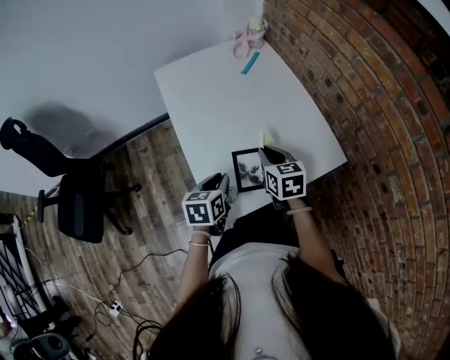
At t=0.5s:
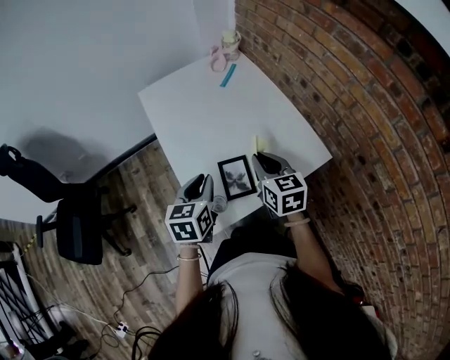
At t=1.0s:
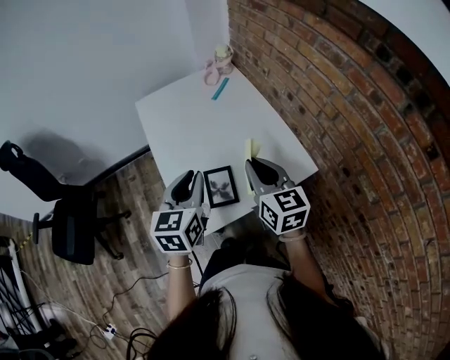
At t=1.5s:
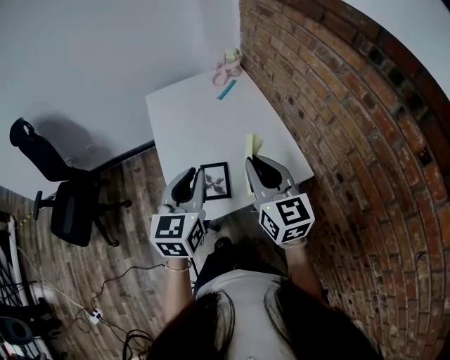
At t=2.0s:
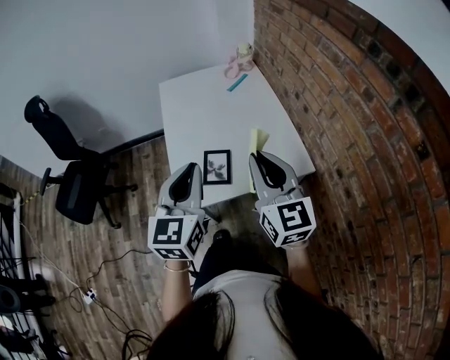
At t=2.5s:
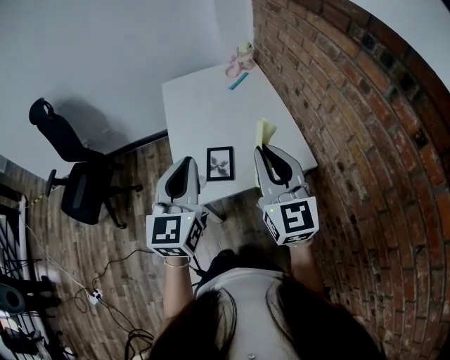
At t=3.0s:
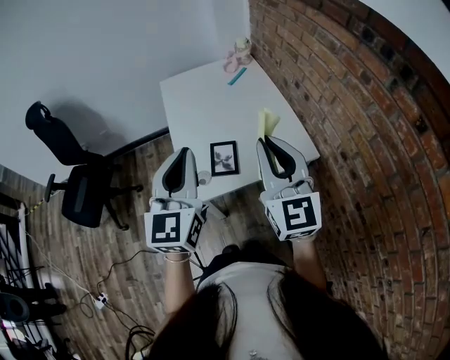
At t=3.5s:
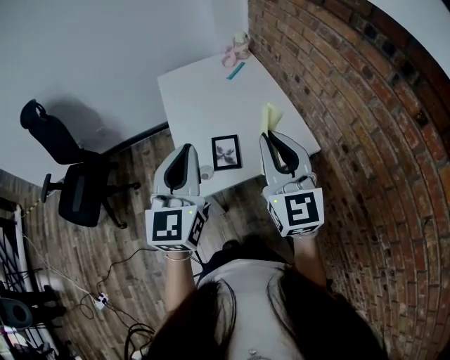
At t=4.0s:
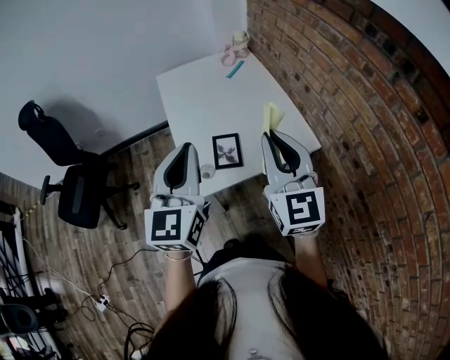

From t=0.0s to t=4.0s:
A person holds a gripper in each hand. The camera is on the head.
From t=0.0s to t=2.0s: The right gripper heads upward, backward and to the right, covering approximately 30 cm, and angles its fingers upward, by roughly 40 degrees, while the left gripper heads upward and backward, covering about 30 cm, and angles its fingers upward, by about 30 degrees.
From t=2.0s to t=4.0s: The left gripper heads to the left, covering about 5 cm, while the right gripper moves approximately 5 cm.

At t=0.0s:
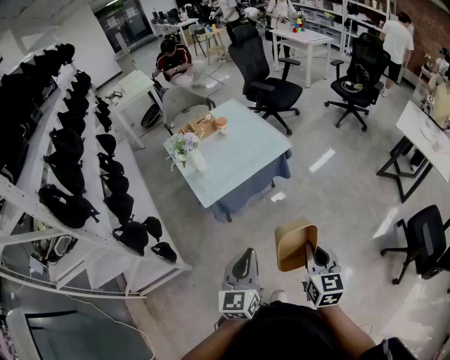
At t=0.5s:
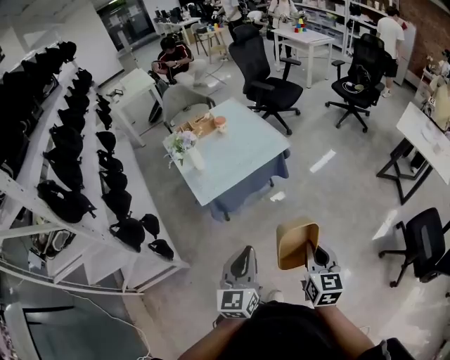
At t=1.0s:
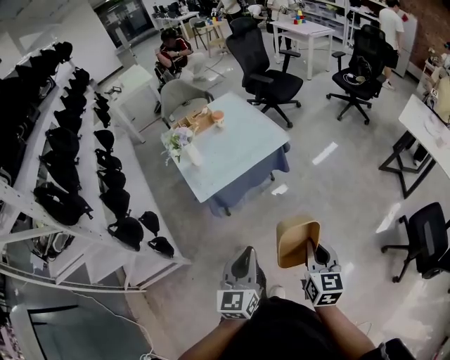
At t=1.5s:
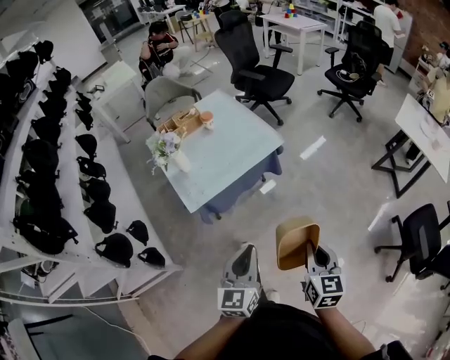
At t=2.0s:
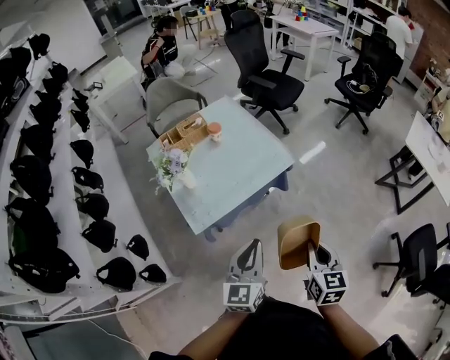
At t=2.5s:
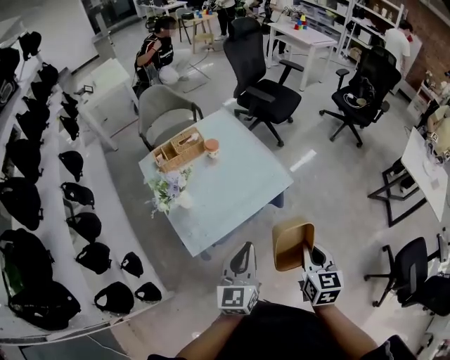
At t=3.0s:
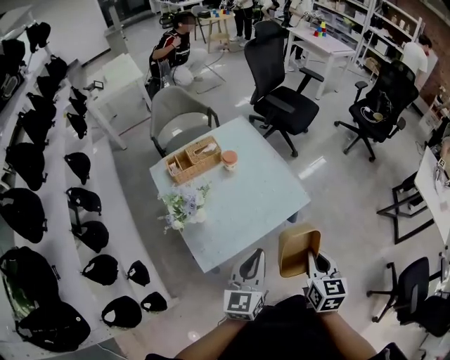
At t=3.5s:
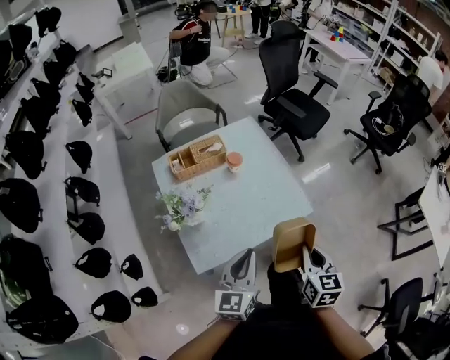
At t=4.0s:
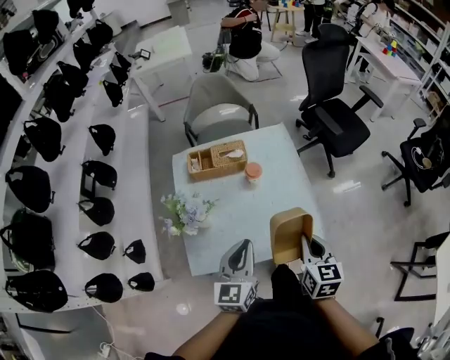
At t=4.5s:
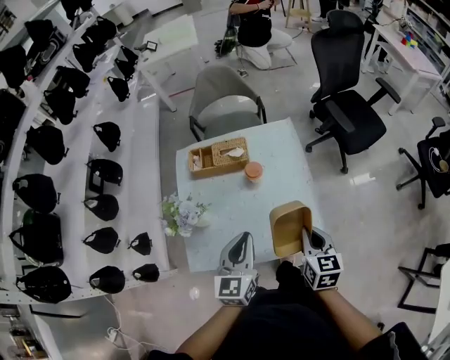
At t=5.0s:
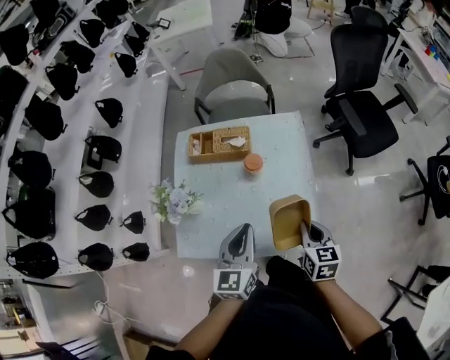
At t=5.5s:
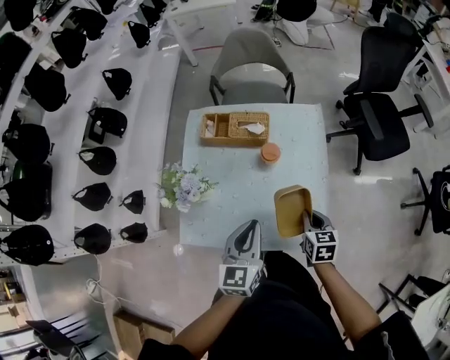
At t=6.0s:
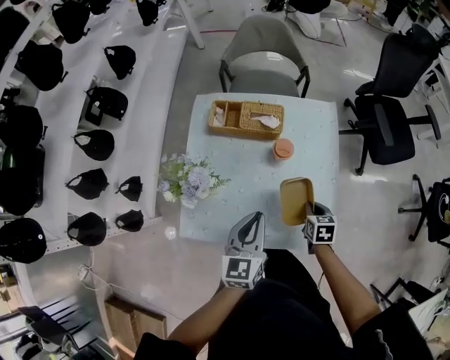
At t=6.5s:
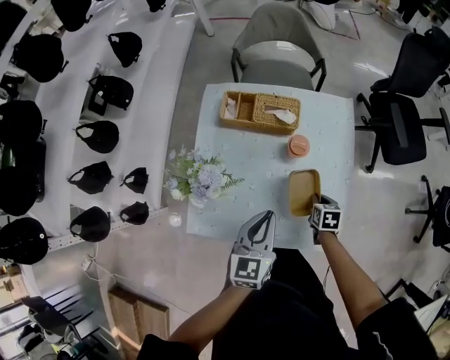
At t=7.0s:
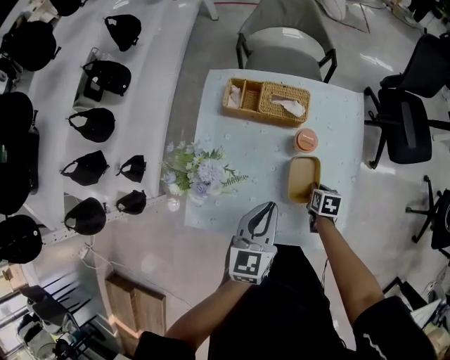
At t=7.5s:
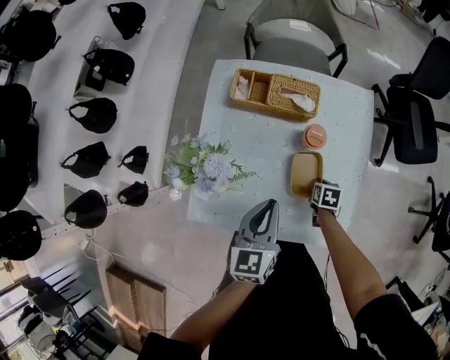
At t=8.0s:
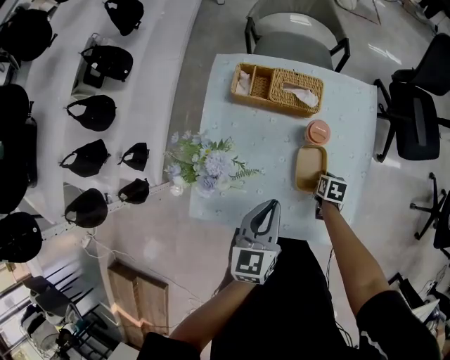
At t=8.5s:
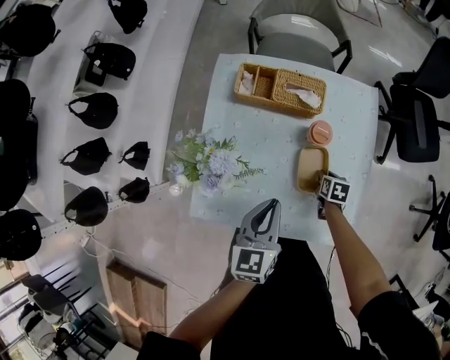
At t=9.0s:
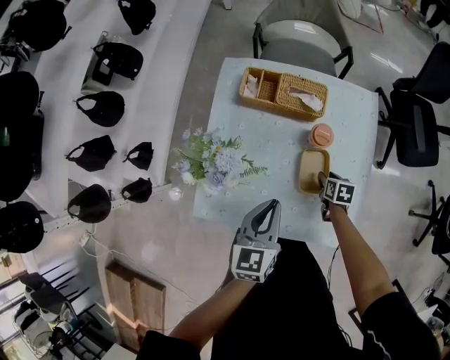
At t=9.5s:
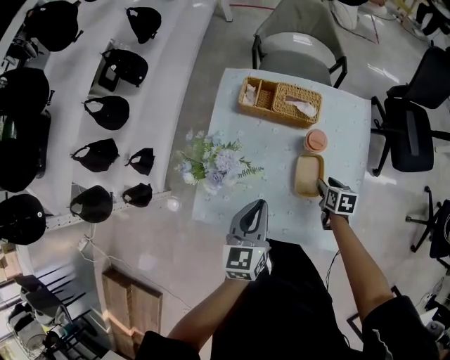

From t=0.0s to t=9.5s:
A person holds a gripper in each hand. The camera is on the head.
From t=0.0s to t=2.0s: Both grippers travel together forward, about 25 cm.
From t=2.0s to t=4.0s: Both grippers travel together forward, about 40 cm. The right gripper swivels some 20 degrees; the left gripper changes its angle by roughly 20 degrees.
From t=4.0s to t=5.5s: The left gripper goes roughly 10 cm forward, to the right and downward. Meanwhile the right gripper heads downward and forward, covering about 20 cm, and rotates approximately 20 degrees.
From t=5.5s to t=7.5s: The right gripper goes approximately 25 cm downward and forward, and turns by about 30 degrees. Meanwhile the left gripper moves downward, to the left and forward, roughly 15 cm.
From t=7.5s to t=9.5s: The right gripper moves upward, about 10 cm, and opens up. The left gripper moves some 5 cm.

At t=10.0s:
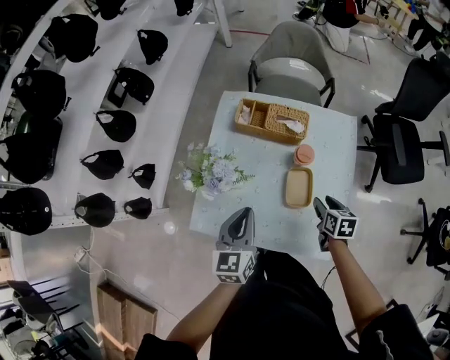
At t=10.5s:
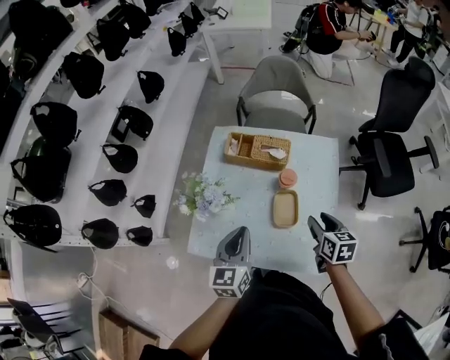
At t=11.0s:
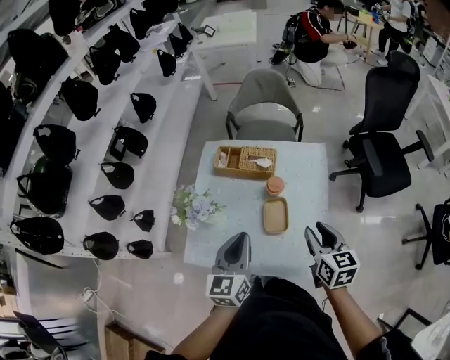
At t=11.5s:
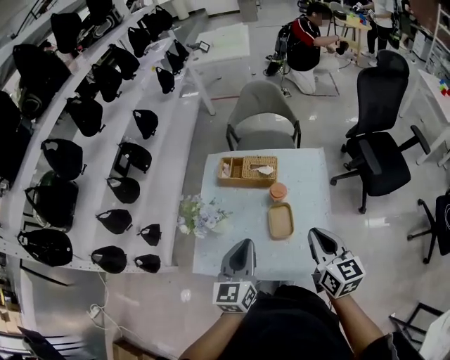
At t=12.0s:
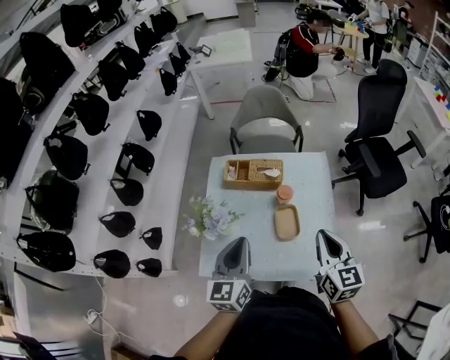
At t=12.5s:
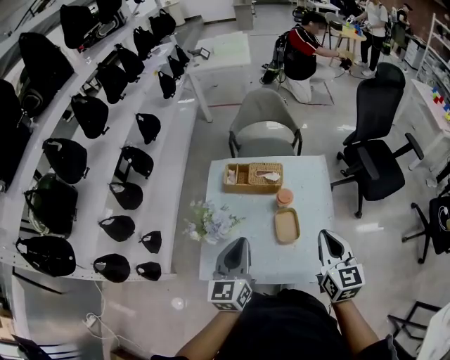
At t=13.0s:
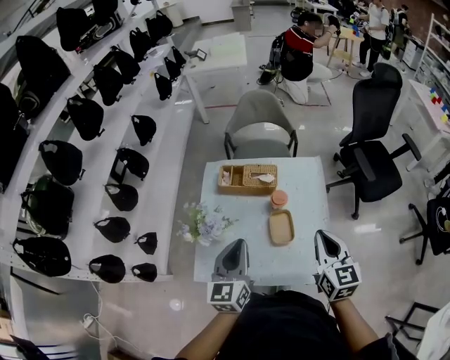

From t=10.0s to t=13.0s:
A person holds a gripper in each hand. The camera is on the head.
From t=10.0s to t=11.5s: The left gripper heads upward and to the right, covering some 15 cm. Meanwhile the right gripper travels upward by approximately 25 cm, points its fingers some 30 degrees further upward, and closes.
From t=11.5s to t=13.0s: The left gripper travels to the left by roughly 5 cm.

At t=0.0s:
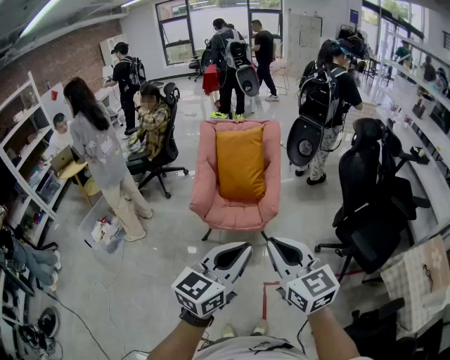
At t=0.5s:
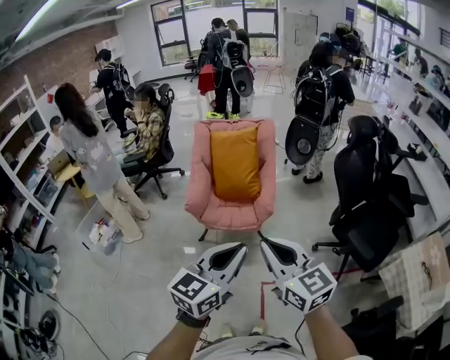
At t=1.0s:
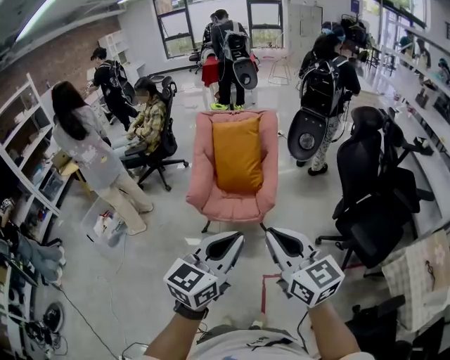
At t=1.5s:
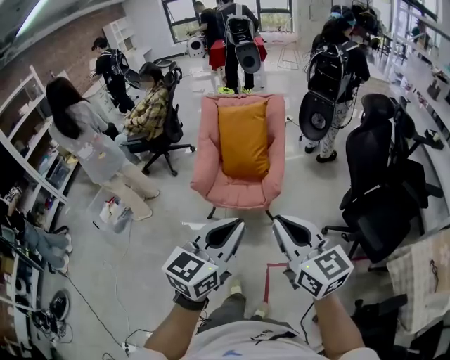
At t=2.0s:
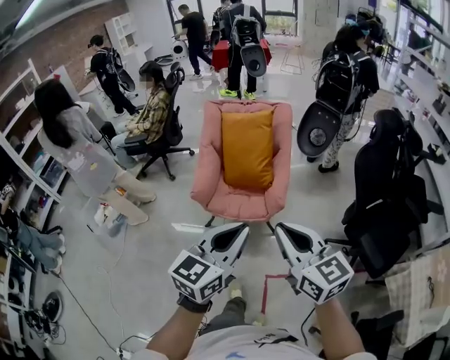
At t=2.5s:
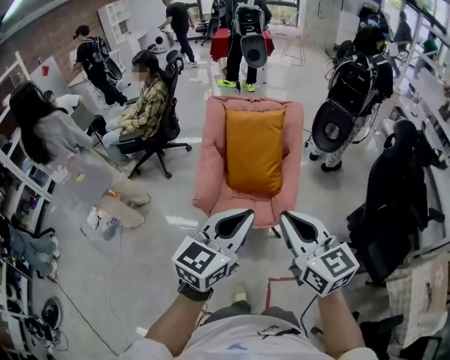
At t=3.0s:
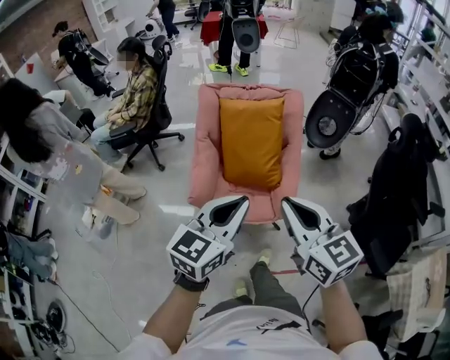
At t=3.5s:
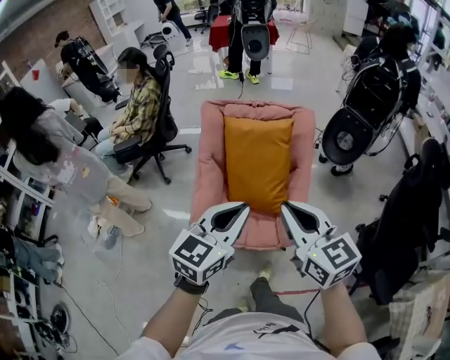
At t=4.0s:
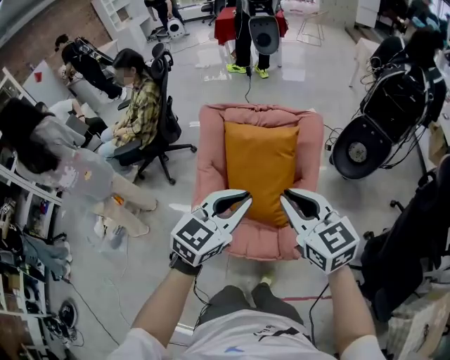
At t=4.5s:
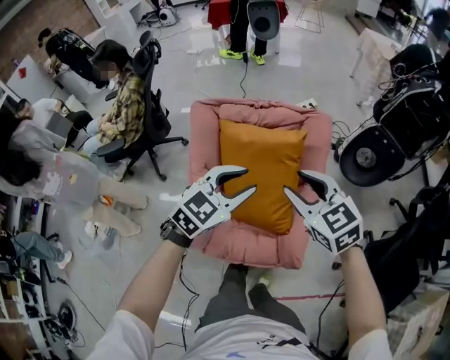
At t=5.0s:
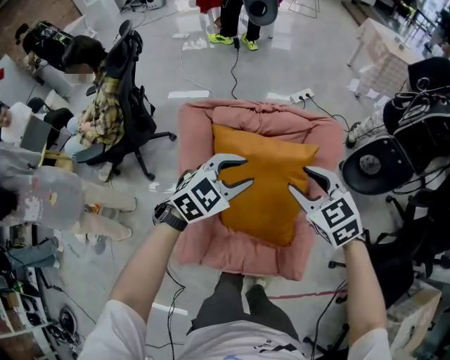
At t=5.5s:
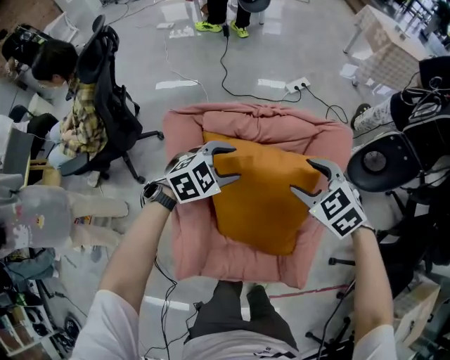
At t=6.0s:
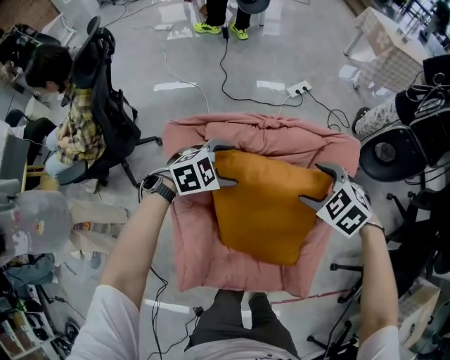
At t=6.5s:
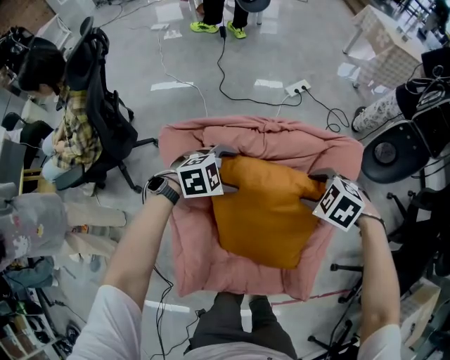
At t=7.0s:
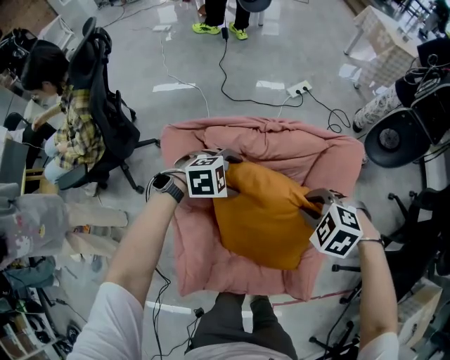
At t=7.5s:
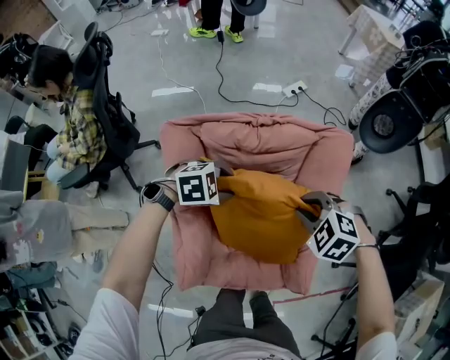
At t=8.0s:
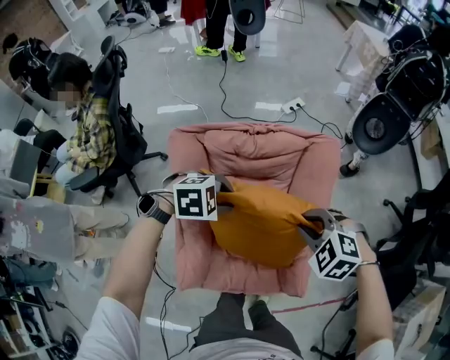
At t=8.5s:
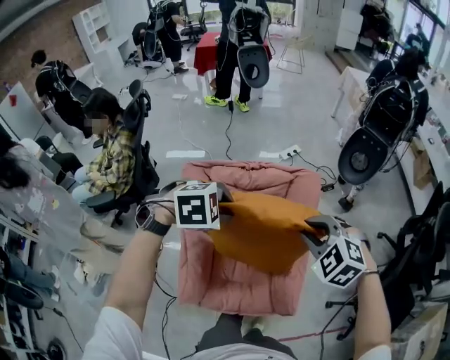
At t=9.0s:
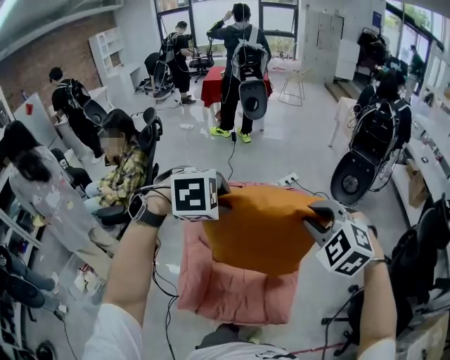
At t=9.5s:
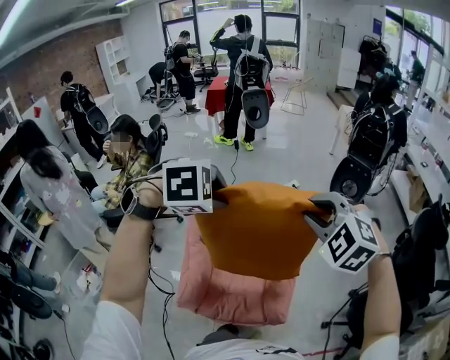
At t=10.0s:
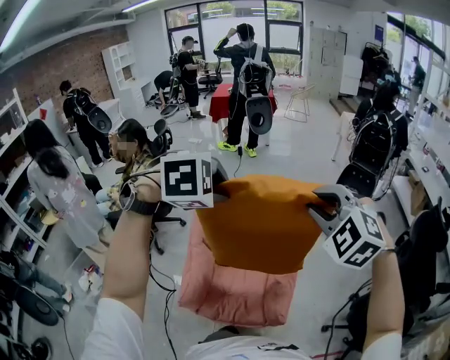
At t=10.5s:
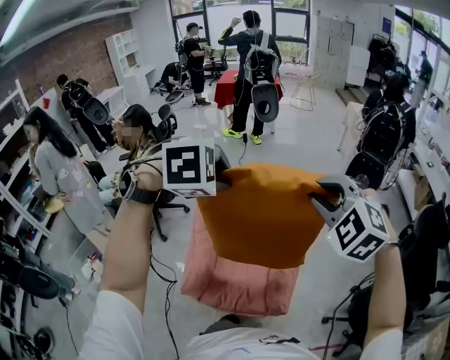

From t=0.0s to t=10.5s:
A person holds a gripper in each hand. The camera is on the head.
From t=0.0s to t=2.0s: The two grippers go about 10 cm forward.
From t=2.0s to t=4.0s: The pair of grippers is taken forward, approximately 50 cm.
From t=4.0s to t=6.5s: The two grippers travel together, roughly 40 cm. The left gripper tips its fingers downward by about 40 degrees, and opens up; the right gripper points its fingers some 60 degrees further downward, and opens.
From t=6.5s to t=8.5s: Both grippers travel together upward, about 25 cm. The right gripper turns by about 30 degrees, and closes up; the left gripper closes its fingers.
From t=8.5s to t=10.5s: The grippers both shift upward and backward by roughly 25 cm. The right gripper turns by approximately 20 degrees.
